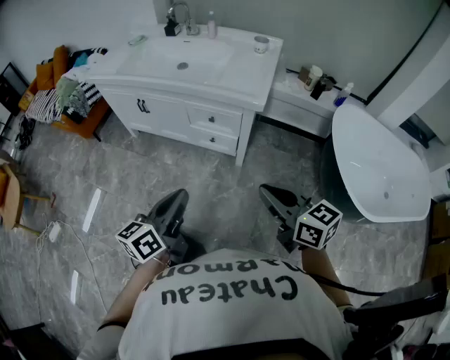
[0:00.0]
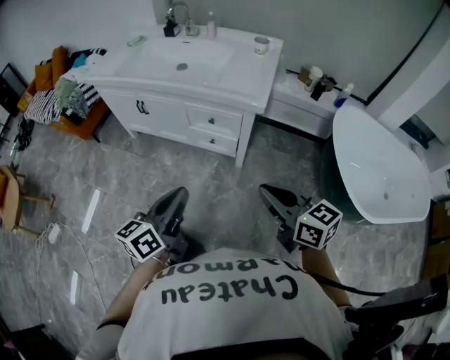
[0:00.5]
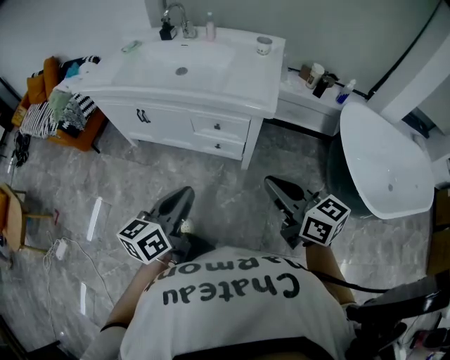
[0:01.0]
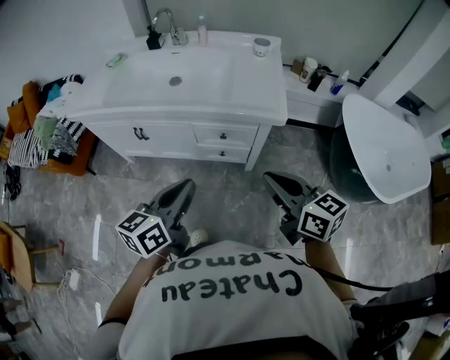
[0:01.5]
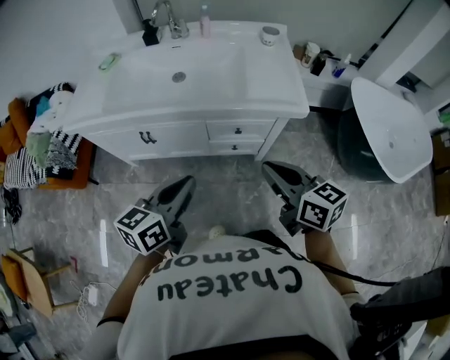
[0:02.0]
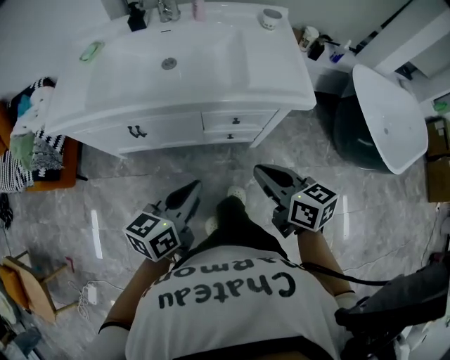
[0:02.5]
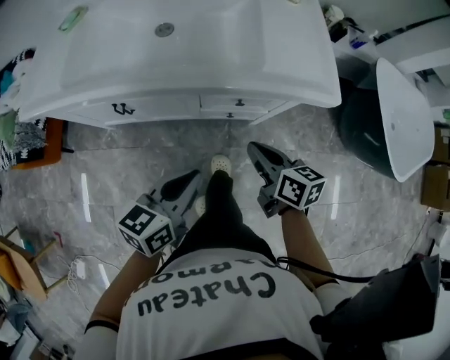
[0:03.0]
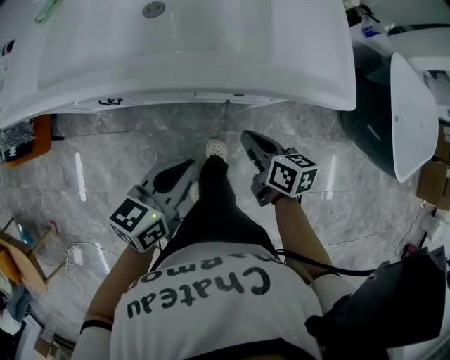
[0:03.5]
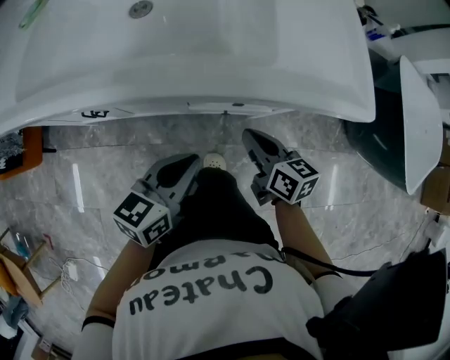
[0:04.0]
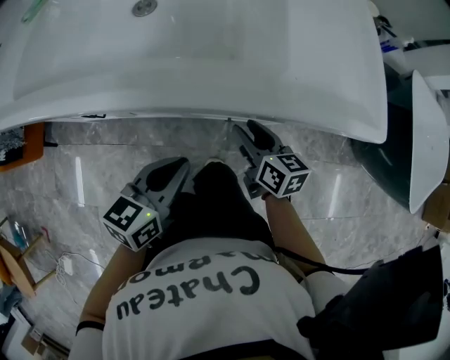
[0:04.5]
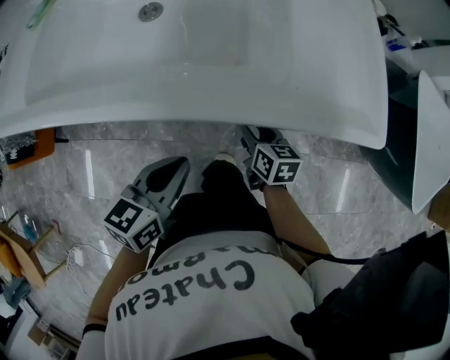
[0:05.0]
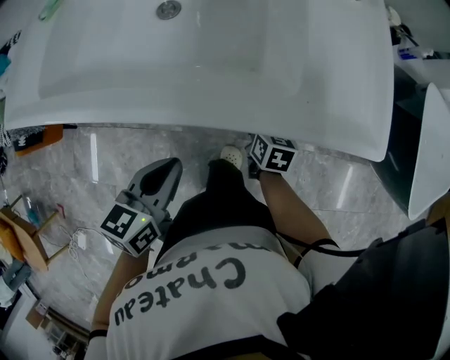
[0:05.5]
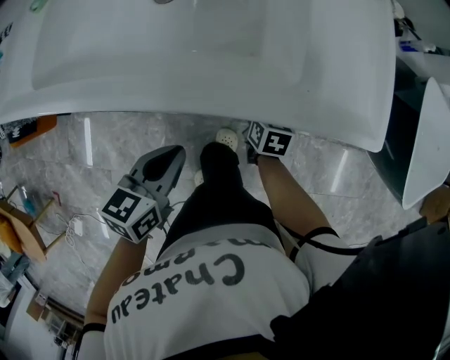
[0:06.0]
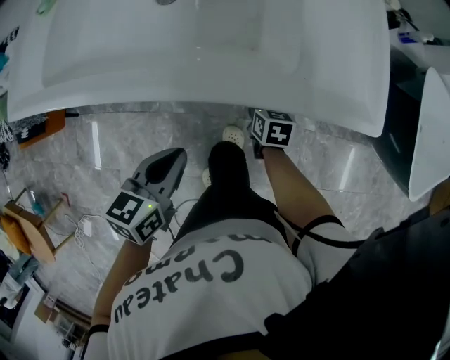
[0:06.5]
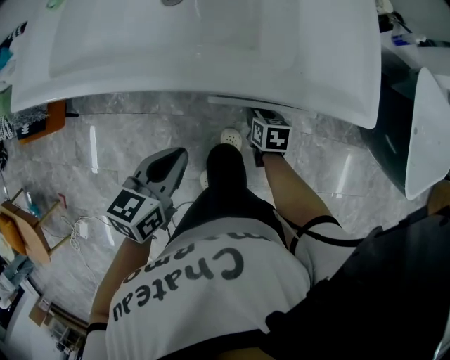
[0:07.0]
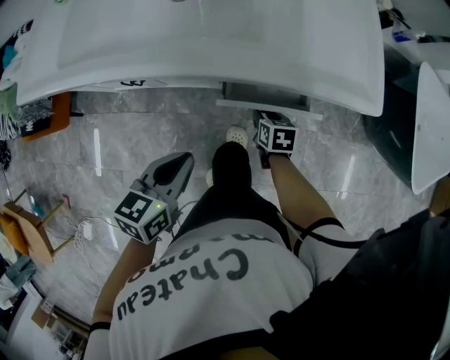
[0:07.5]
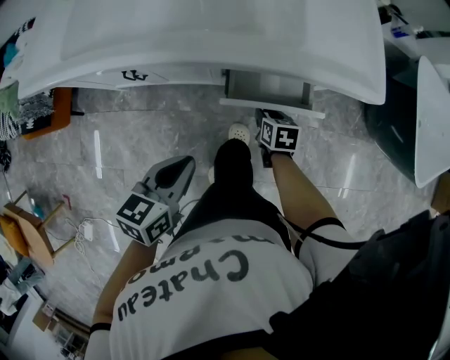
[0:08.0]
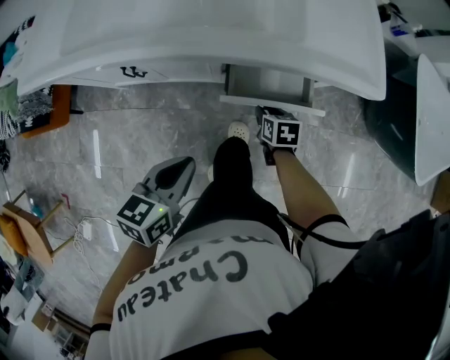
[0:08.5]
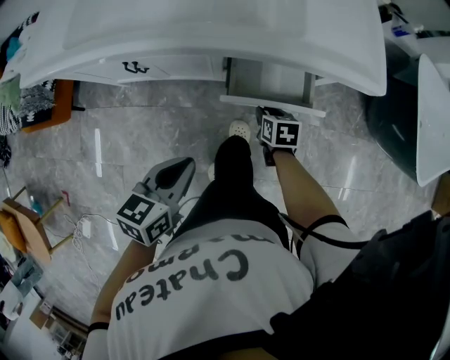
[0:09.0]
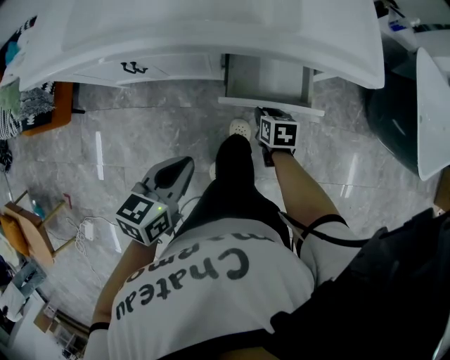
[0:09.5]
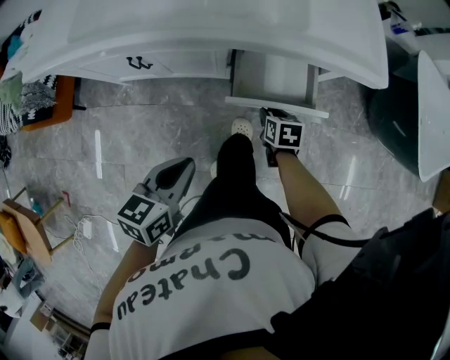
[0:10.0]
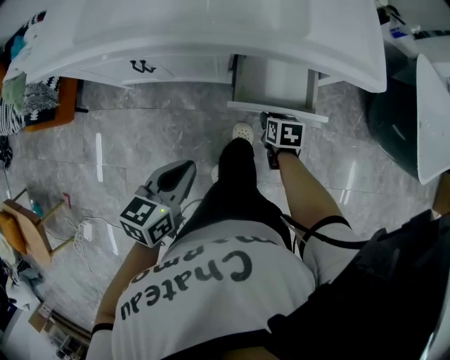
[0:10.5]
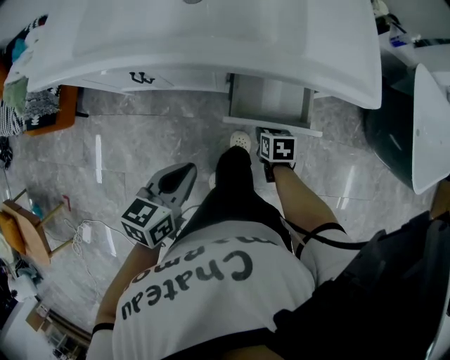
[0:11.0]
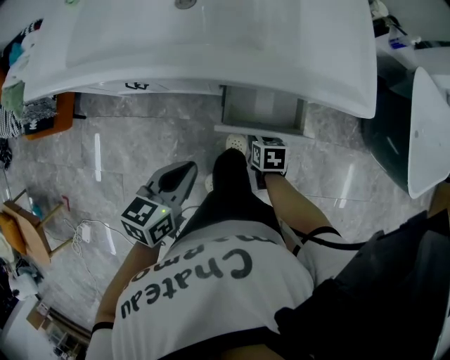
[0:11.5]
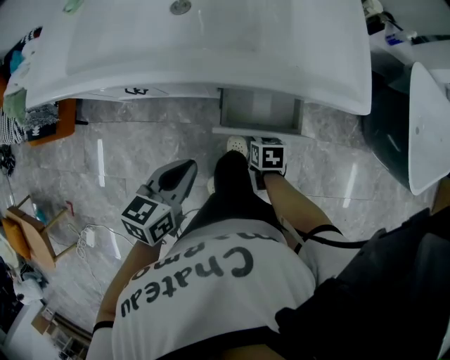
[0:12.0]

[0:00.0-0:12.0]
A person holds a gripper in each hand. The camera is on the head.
0:00.0 to 0:02.0: The right gripper shifts some 30 cm to the left and forward, and swivels some 20 degrees; the left gripper shifts some 30 cm forward and to the left, and swivels approximately 30 degrees.
0:02.0 to 0:04.0: The two grippers go some 30 cm downward and forward.
0:04.0 to 0:06.0: The left gripper travels to the left by approximately 5 cm; the right gripper goes about 10 cm forward and downward, rotates about 30 degrees, and opens up.
0:06.0 to 0:08.0: The two grippers go some 10 cm backward.
0:08.0 to 0:10.0: The left gripper goes about 5 cm backward.
0:10.0 to 0:12.0: The left gripper moves forward, roughly 5 cm.

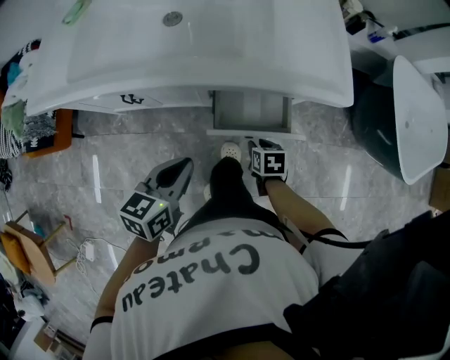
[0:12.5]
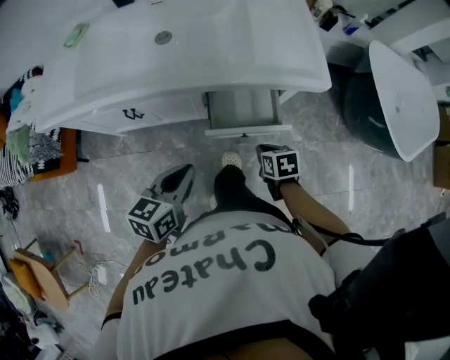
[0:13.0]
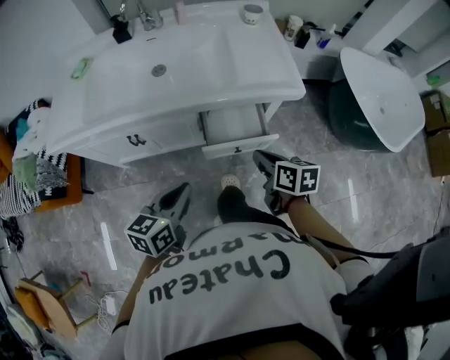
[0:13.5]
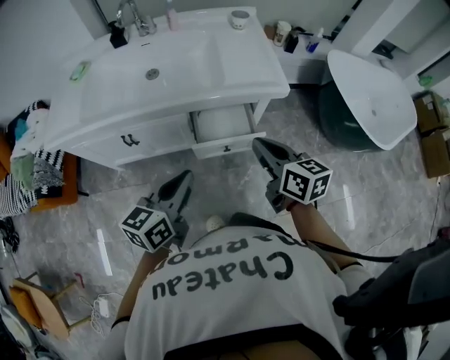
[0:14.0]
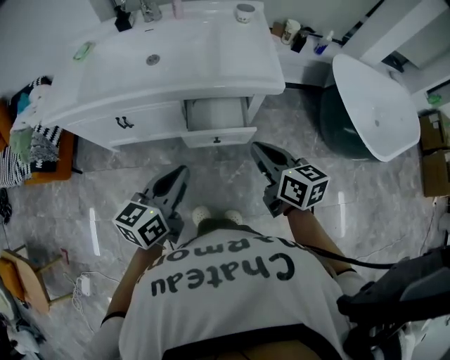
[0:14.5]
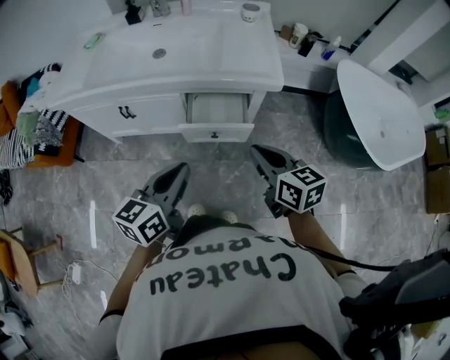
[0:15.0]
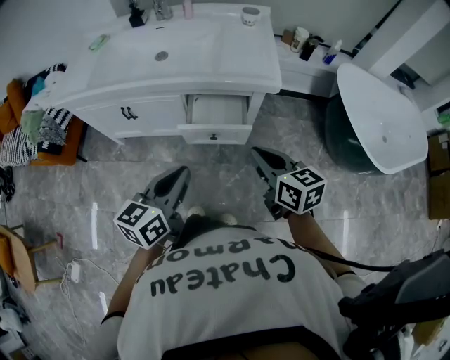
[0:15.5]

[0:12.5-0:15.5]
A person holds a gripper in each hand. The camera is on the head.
0:12.5 to 0:14.0: The left gripper heads upward and backward, covering about 15 cm. Meanwhile the right gripper moves upward, some 35 cm, points its fingers roughly 40 degrees further upward, and closes its fingers.
0:14.0 to 0:15.5: The grippers both shift to the right and backward by roughly 10 cm.

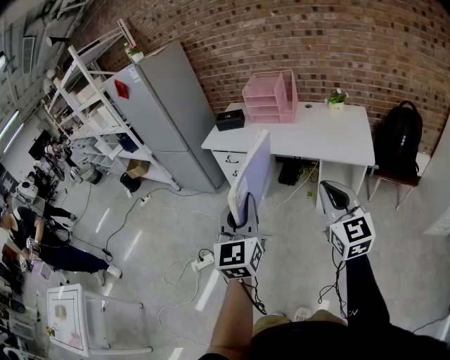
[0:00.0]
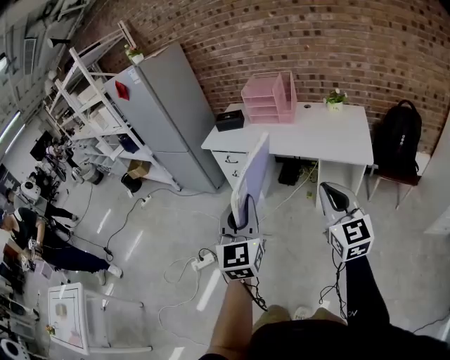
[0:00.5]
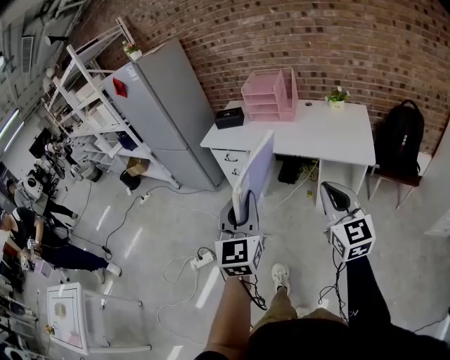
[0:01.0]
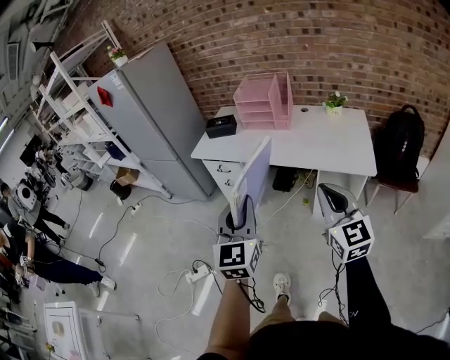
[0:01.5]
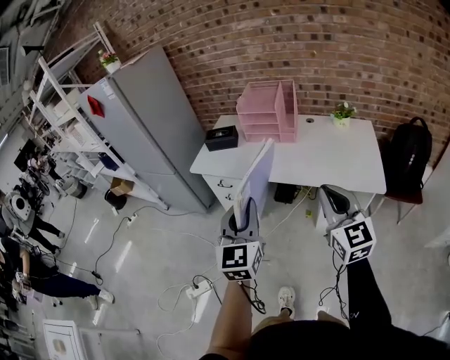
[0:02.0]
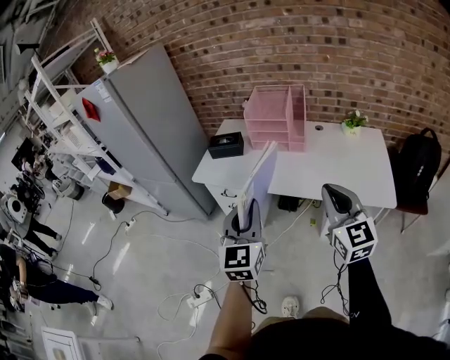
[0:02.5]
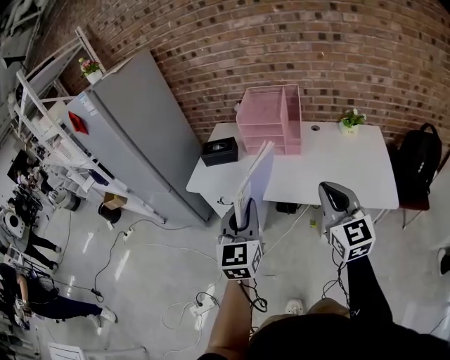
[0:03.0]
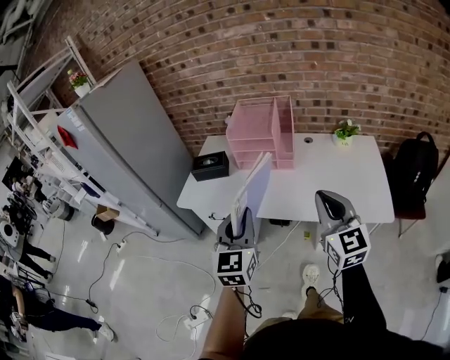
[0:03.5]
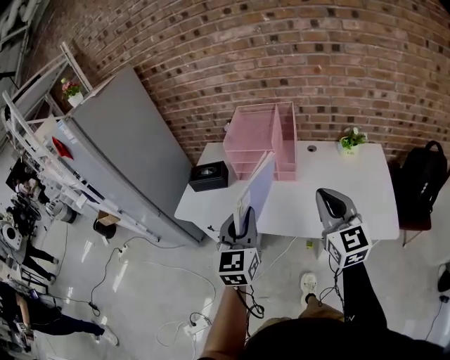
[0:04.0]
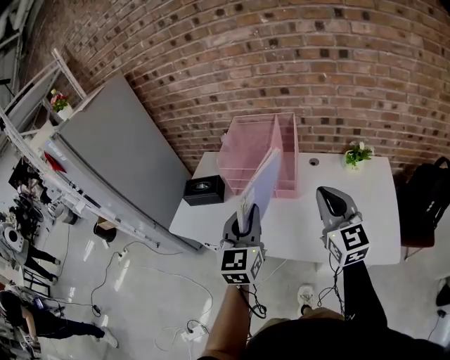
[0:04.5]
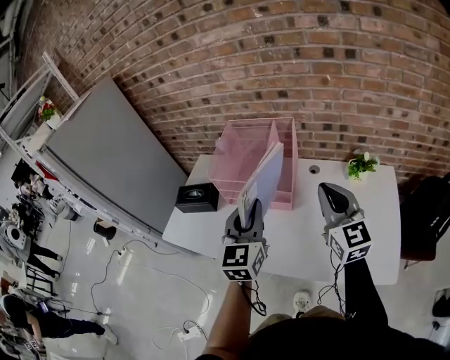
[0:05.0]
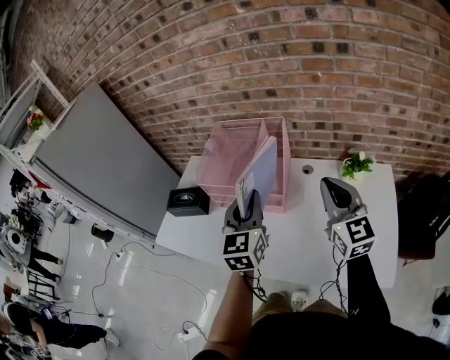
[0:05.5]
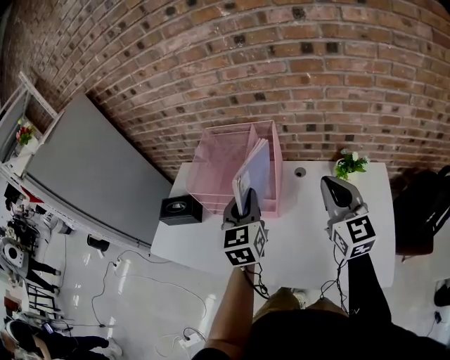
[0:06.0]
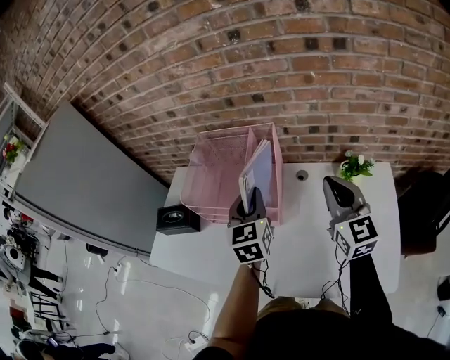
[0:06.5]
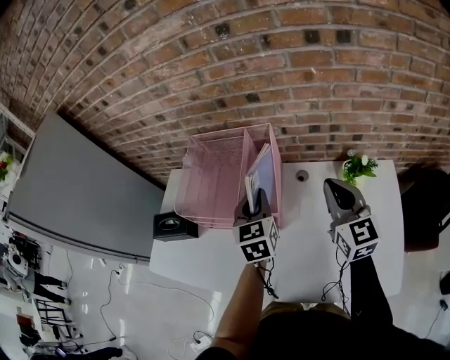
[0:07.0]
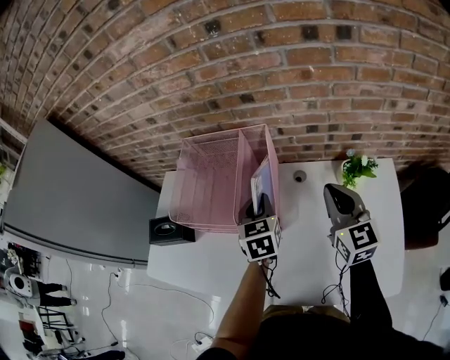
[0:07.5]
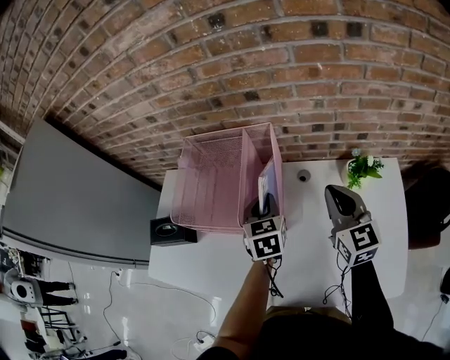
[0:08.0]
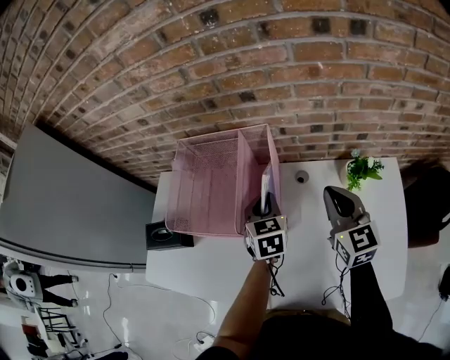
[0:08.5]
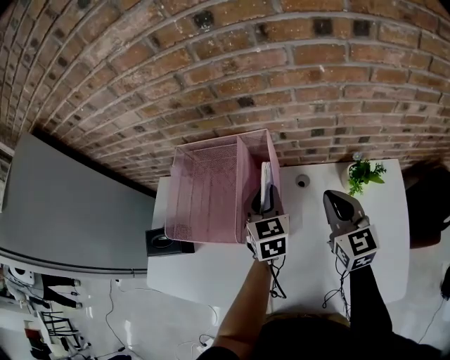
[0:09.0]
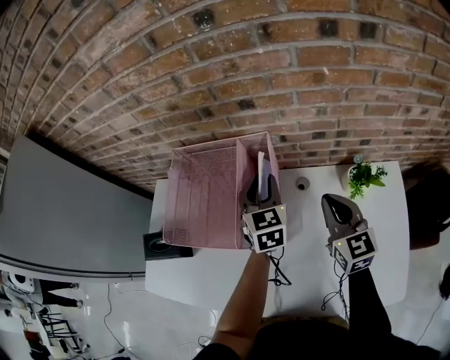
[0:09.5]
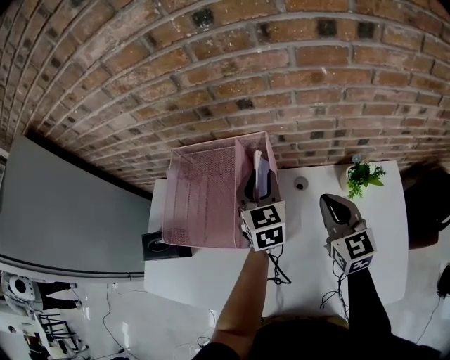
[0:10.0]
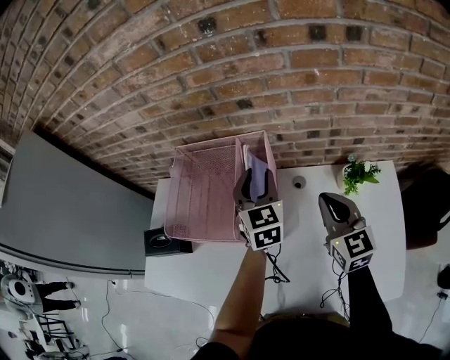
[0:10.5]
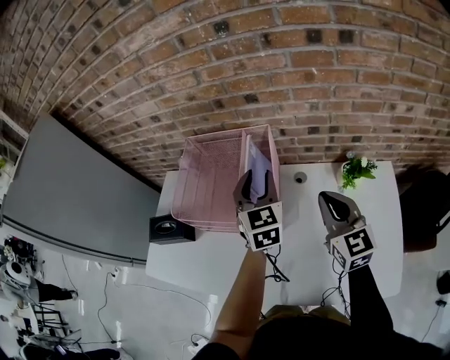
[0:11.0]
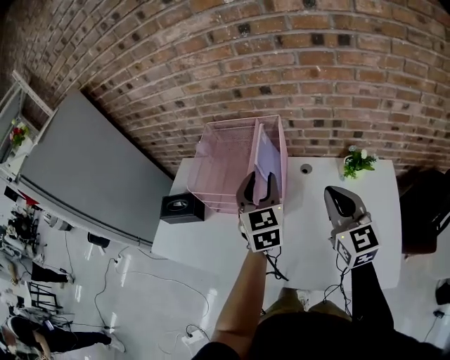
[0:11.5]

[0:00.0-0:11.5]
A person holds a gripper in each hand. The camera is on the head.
0:00.0 to 0:02.0: Both grippers move forward, approximately 20 cm.
0:02.0 to 0:04.0: Both grippers travel together forward, some 25 cm.
0:04.0 to 0:06.0: The grippers both shift forward and to the right by roughly 30 cm.
0:06.0 to 0:07.5: The two grippers go approximately 15 cm forward and downward.
0:07.5 to 0:09.5: The left gripper goes about 10 cm forward, and opens its fingers, while the right gripper changes place by about 5 cm.
0:09.5 to 0:11.5: The two grippers go about 20 cm backward and upward.
